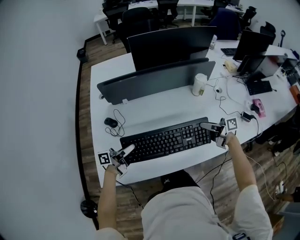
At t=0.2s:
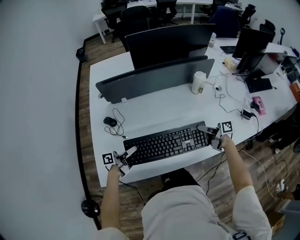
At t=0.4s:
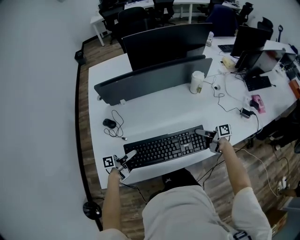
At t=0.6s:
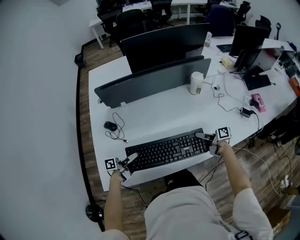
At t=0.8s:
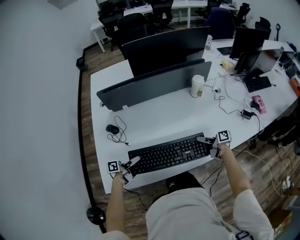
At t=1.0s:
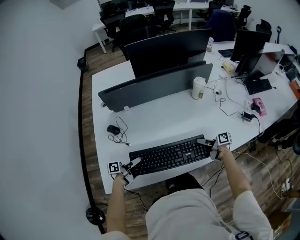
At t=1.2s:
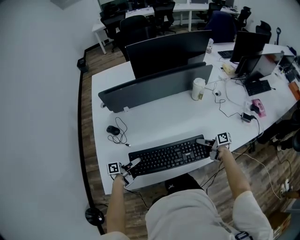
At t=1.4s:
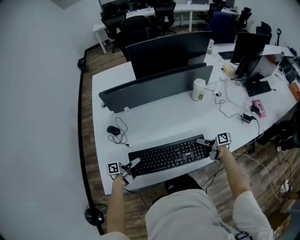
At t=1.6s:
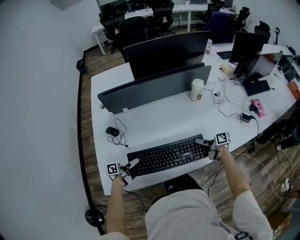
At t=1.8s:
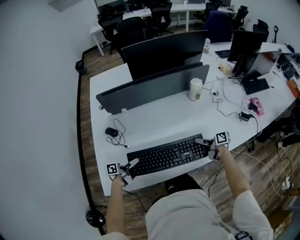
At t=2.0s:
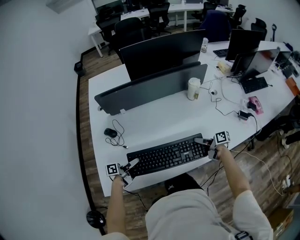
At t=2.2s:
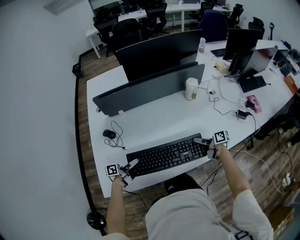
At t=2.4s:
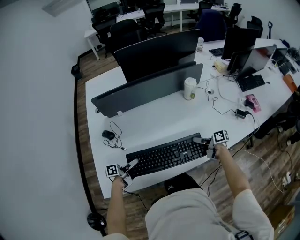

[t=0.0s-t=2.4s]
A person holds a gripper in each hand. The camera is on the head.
t=0.0s to t=1.2s: The two grippers go some 10 cm downward. The right gripper swivels some 20 degrees. Meanwhile the left gripper rotates roughly 20 degrees.
t=1.2s to t=2.4s: The grippers move only a little.

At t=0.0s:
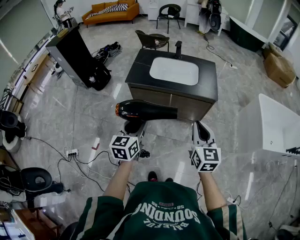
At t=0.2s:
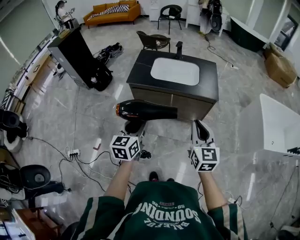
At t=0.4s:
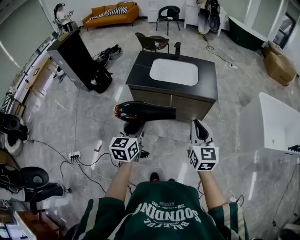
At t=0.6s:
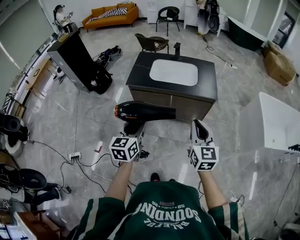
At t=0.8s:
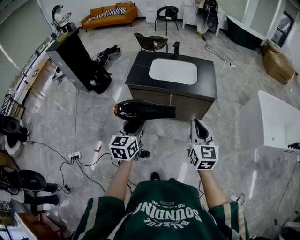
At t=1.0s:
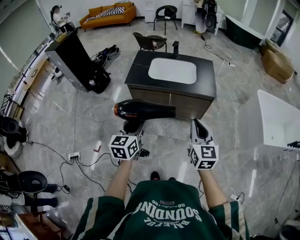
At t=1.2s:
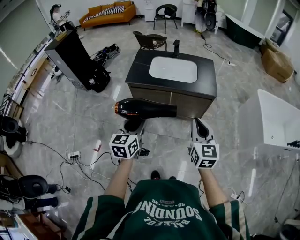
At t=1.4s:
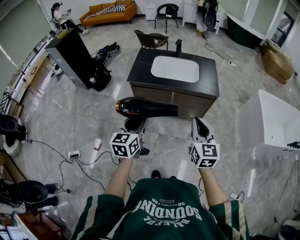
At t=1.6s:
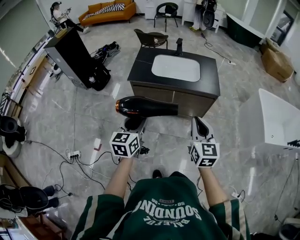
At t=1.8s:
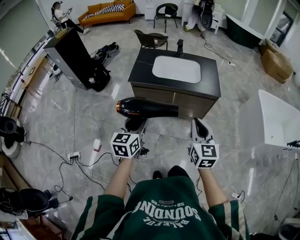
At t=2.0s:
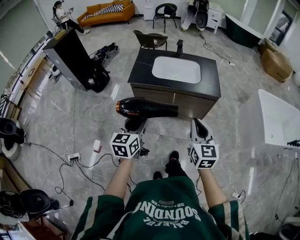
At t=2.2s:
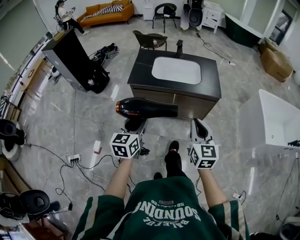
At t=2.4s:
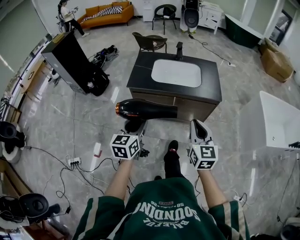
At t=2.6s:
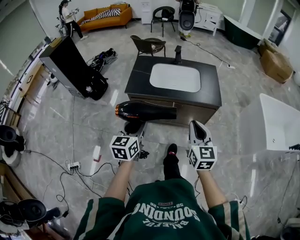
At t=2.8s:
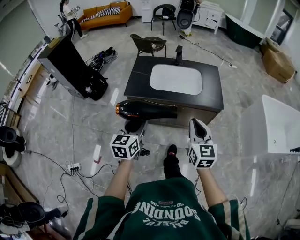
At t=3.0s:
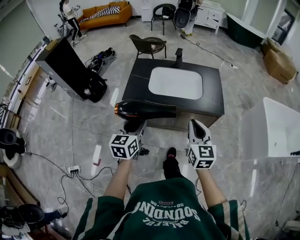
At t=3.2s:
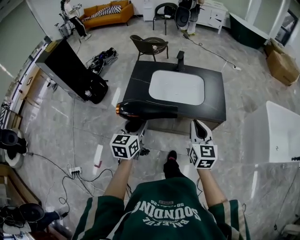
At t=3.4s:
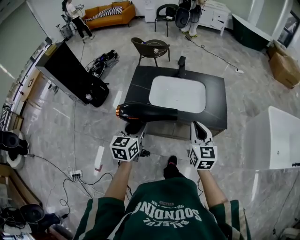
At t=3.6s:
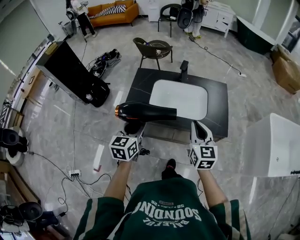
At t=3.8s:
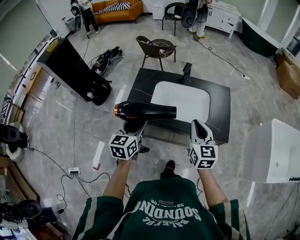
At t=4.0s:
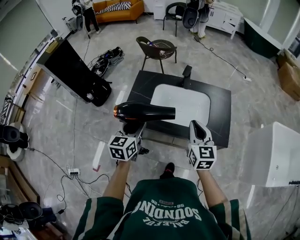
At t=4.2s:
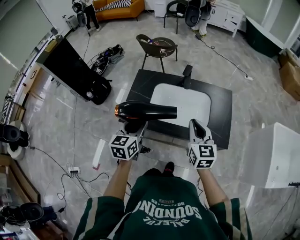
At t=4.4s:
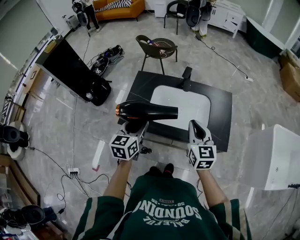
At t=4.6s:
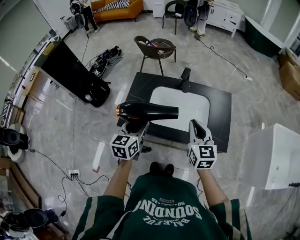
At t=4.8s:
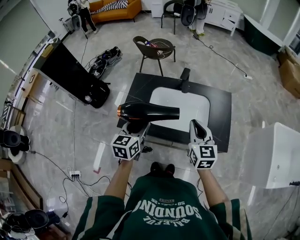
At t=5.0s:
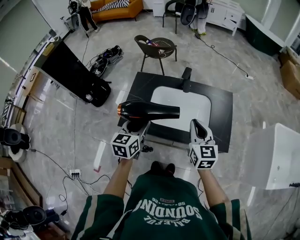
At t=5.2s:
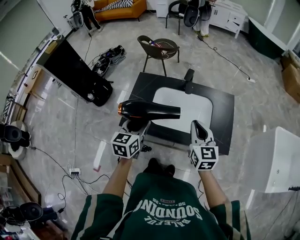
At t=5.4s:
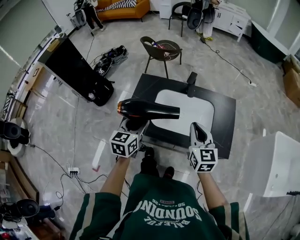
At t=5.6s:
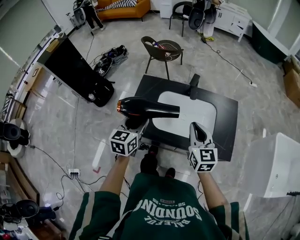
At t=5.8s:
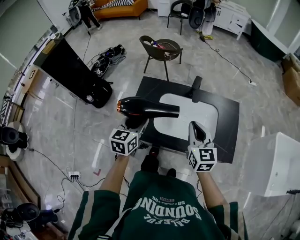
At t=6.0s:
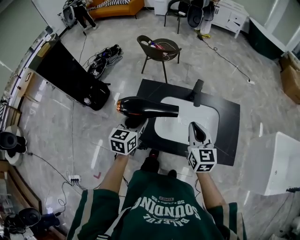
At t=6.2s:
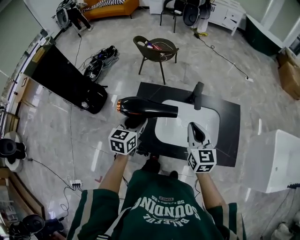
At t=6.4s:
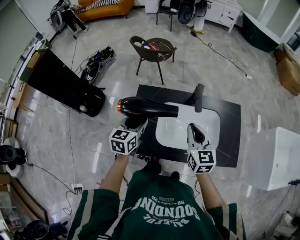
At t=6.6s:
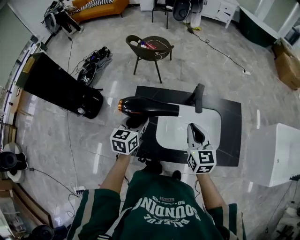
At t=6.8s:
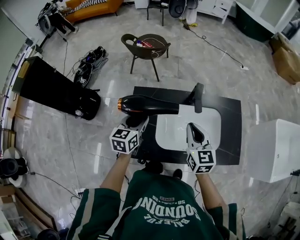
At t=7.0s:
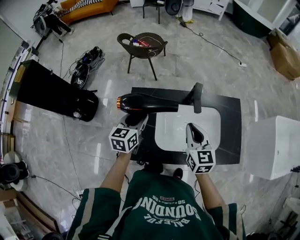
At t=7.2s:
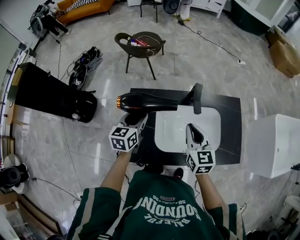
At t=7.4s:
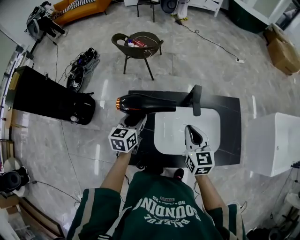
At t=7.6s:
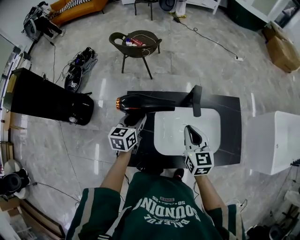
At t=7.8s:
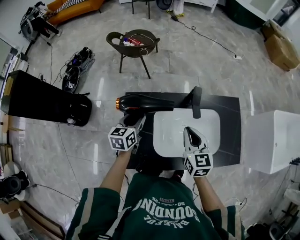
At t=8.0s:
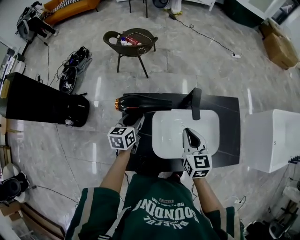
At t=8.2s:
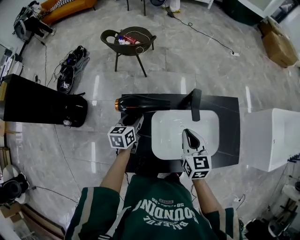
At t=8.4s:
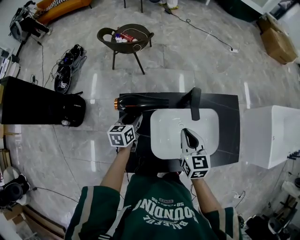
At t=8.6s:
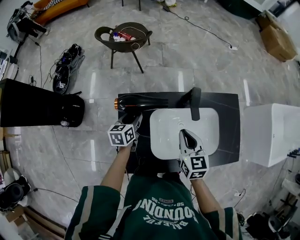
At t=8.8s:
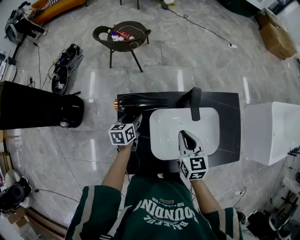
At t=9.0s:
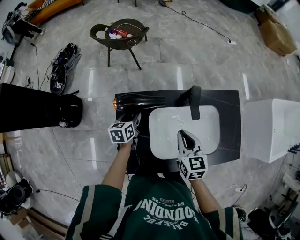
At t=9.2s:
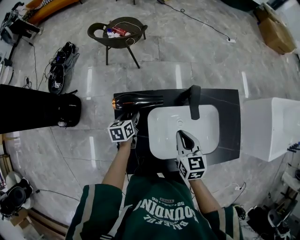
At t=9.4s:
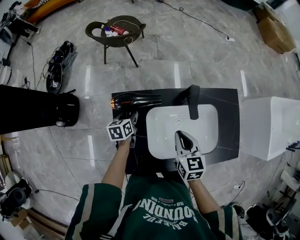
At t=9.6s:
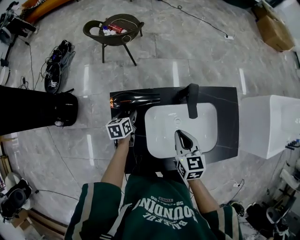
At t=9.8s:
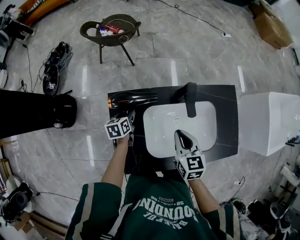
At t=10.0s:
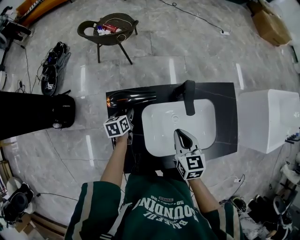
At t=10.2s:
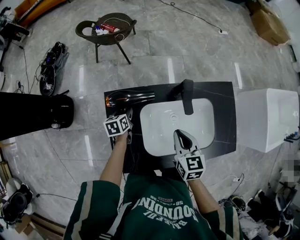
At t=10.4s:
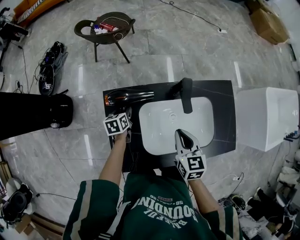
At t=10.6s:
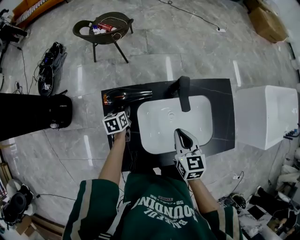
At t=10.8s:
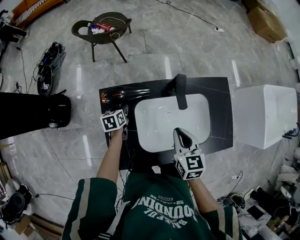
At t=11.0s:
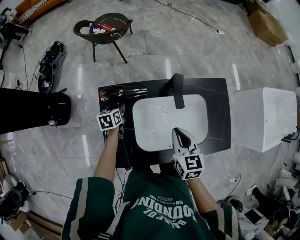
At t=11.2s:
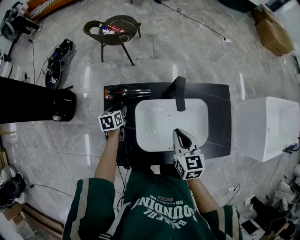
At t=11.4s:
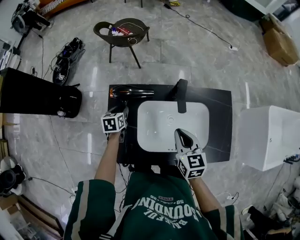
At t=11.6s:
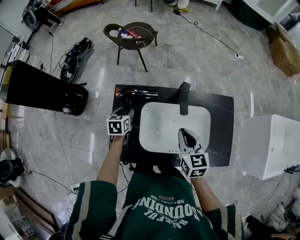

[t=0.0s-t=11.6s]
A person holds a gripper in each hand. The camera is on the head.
t=0.0s to t=1.4s: There are only small adjustments of the grippers.
t=1.4s to t=2.8s: Both grippers travel together forward, some 15 cm.
t=2.8s to t=4.4s: The two grippers go roughly 30 cm forward.
t=4.4s to t=5.8s: The two grippers go roughly 10 cm forward and to the left.
t=5.8s to t=7.2s: The left gripper is displaced forward by roughly 20 cm; the right gripper shifts roughly 15 cm forward, downward and to the left.
t=7.2s to t=8.8s: The left gripper goes roughly 15 cm downward and forward. The right gripper shifts roughly 5 cm downward.
t=8.8s to t=10.2s: The left gripper heads downward, covering approximately 5 cm.
t=10.2s to t=11.6s: The left gripper goes some 10 cm upward and backward; the right gripper travels to the right and upward by some 5 cm.

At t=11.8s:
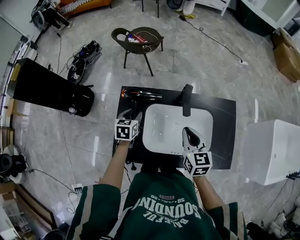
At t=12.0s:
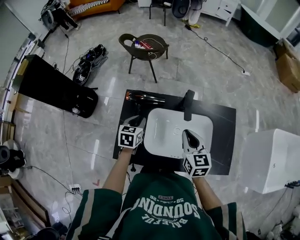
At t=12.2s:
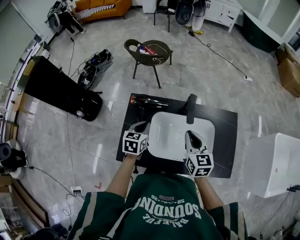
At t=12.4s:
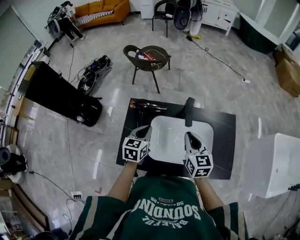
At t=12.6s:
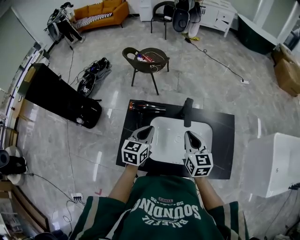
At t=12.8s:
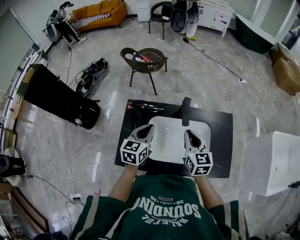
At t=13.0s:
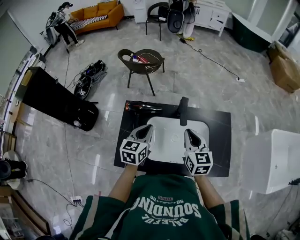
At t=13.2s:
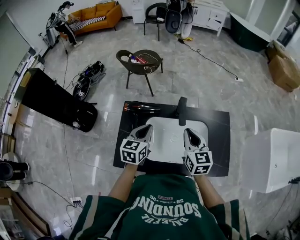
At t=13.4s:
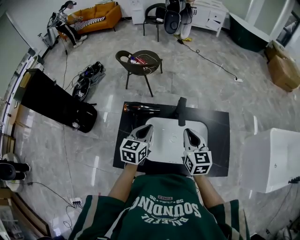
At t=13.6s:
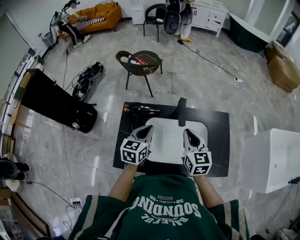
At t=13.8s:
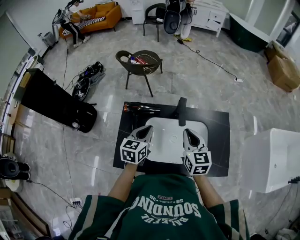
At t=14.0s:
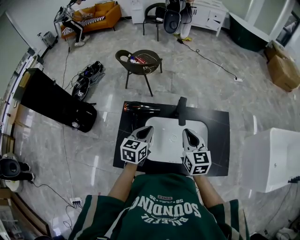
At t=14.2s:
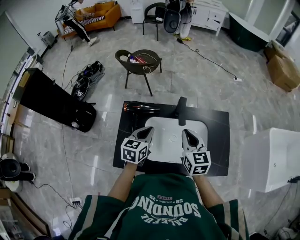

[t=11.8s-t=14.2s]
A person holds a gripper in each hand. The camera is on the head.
t=11.8s to t=13.0s: The left gripper travels upward, to the right and backward by about 15 cm, swivels approximately 20 degrees, and closes, while the right gripper is displaced upward by roughly 5 cm.
t=13.0s to t=14.2s: There are only small adjustments of the grippers.

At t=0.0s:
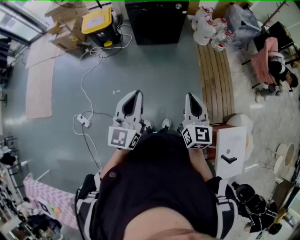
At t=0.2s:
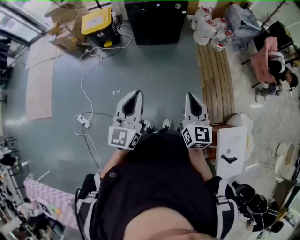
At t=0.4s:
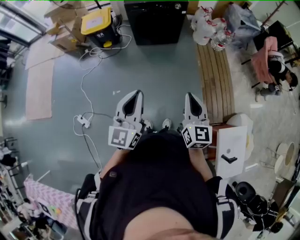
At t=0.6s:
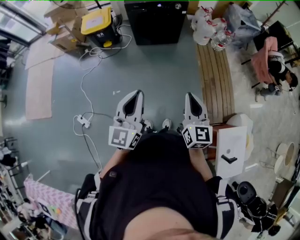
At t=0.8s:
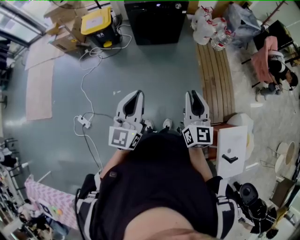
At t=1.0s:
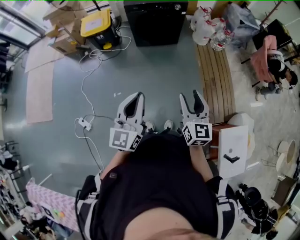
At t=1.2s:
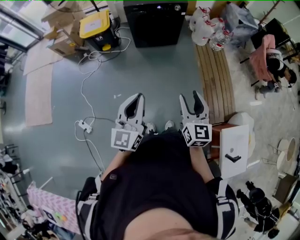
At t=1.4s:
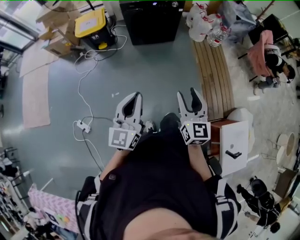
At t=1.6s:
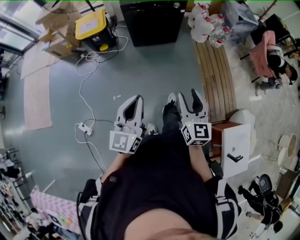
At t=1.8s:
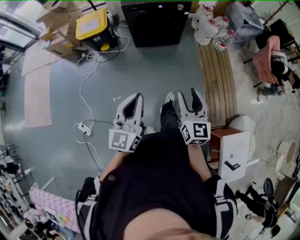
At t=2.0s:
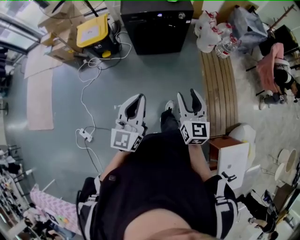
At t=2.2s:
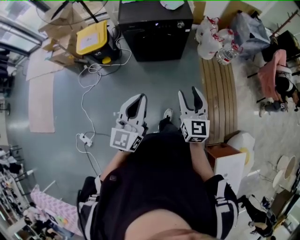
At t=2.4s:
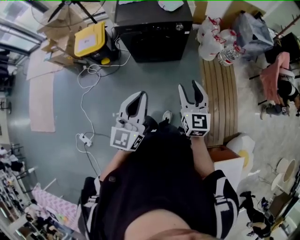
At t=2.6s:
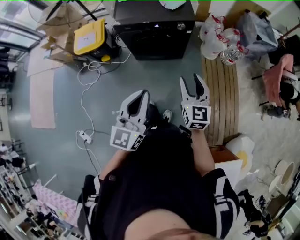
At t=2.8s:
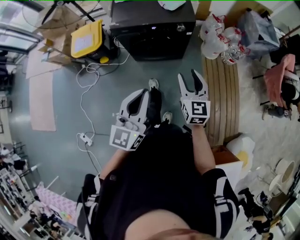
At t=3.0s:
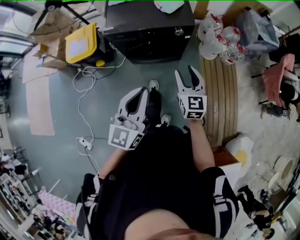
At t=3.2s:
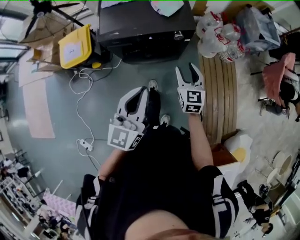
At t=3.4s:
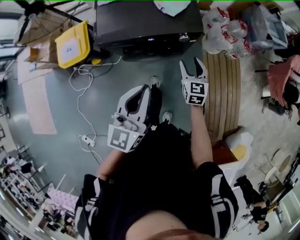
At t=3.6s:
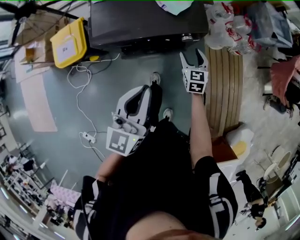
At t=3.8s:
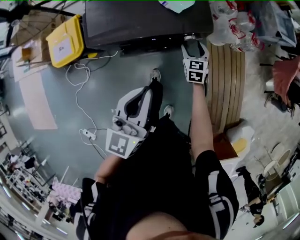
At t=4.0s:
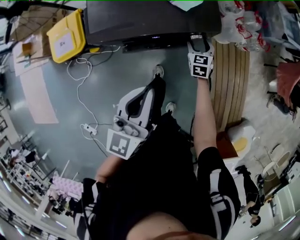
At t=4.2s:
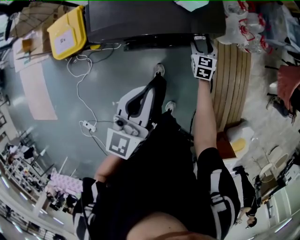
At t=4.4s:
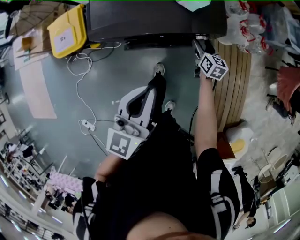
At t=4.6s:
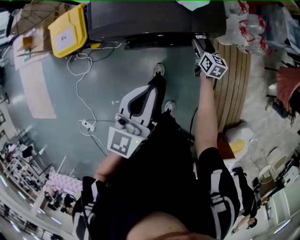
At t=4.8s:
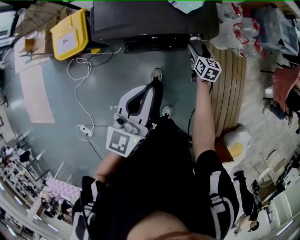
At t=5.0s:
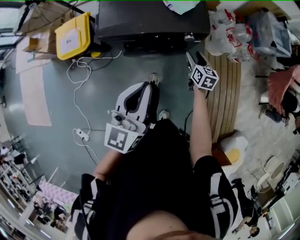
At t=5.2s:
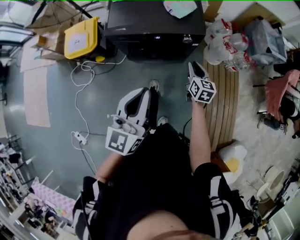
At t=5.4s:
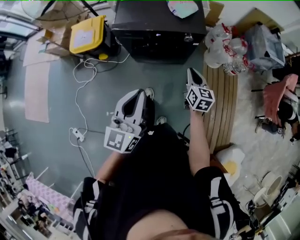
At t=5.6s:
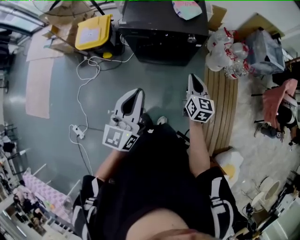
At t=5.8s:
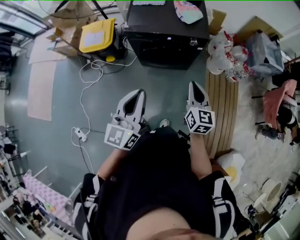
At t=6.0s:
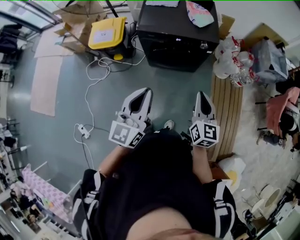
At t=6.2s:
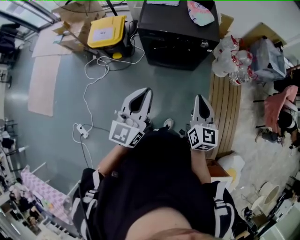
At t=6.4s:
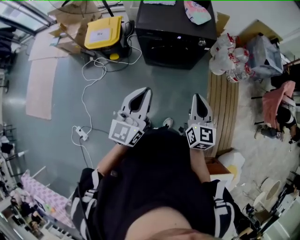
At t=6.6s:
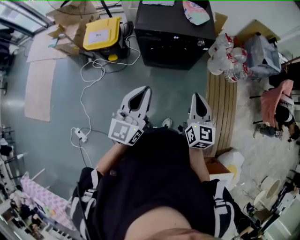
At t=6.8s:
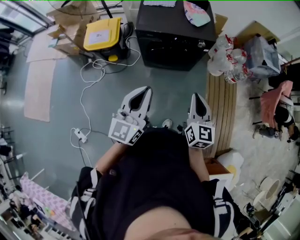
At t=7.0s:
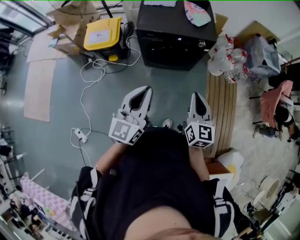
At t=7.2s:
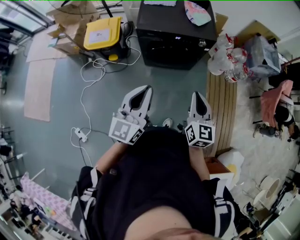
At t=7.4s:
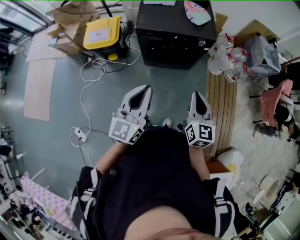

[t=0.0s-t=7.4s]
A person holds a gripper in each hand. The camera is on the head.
t=0.0s to t=1.4s: The grippers both shift to the left by some 5 cm. The right gripper opens up.
t=1.4s to t=3.0s: Both grippers are carried forward, some 70 cm.
t=3.0s to t=4.4s: Both grippers move forward and downward, roughly 40 cm. The right gripper changes its angle by roughly 30 degrees.
t=4.4s to t=6.0s: The two grippers travel together, backward, roughly 50 cm. The left gripper heads upward, covering some 20 cm. Meanwhile the right gripper moves upward, about 40 cm, turns by about 20 degrees, and closes its fingers.
t=6.0s to t=7.4s: Both grippers move to the left, some 5 cm.
